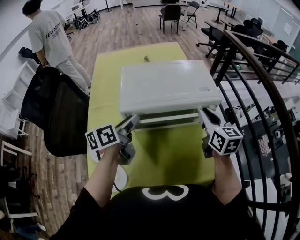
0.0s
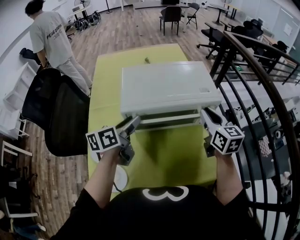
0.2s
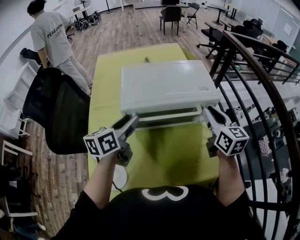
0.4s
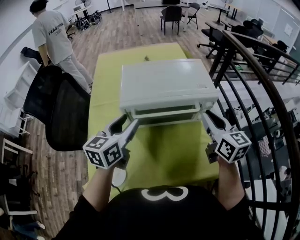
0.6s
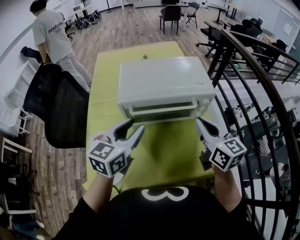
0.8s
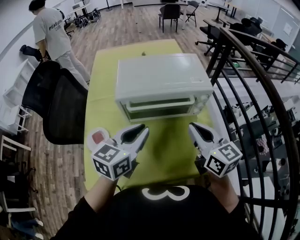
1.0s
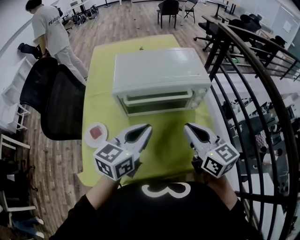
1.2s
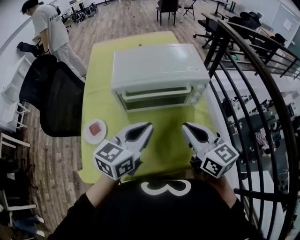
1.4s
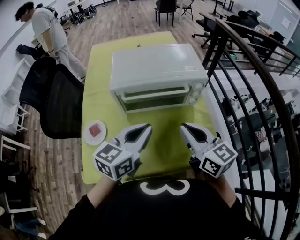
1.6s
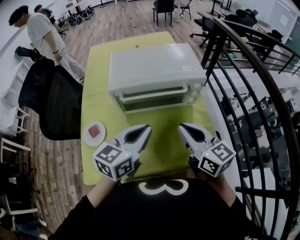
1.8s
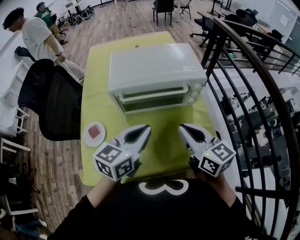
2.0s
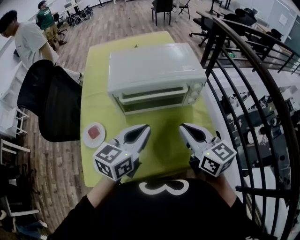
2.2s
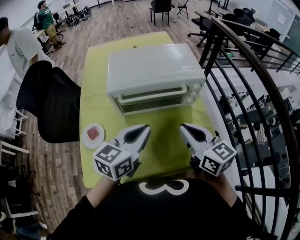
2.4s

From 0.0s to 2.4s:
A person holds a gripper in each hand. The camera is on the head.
From 0.0s to 1.2s: The left gripper shifts roughly 15 cm backward and to the right, rotates some 40 degrees, and closes. Meanwhile the right gripper goes about 15 cm backward.
From 1.2s to 2.4s: The grippers stay close to where they were, moving slightly.

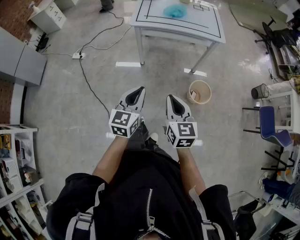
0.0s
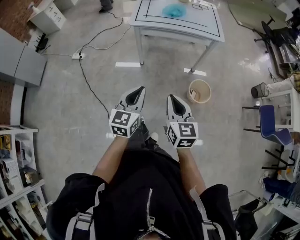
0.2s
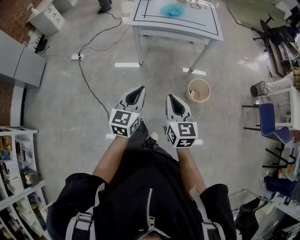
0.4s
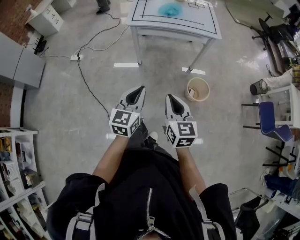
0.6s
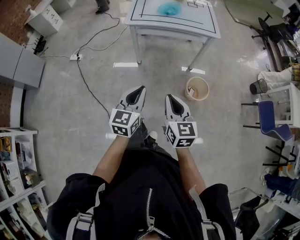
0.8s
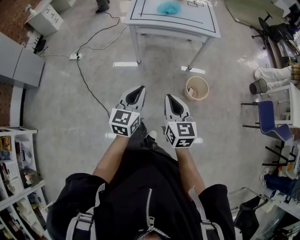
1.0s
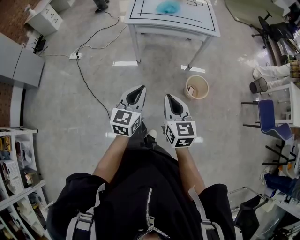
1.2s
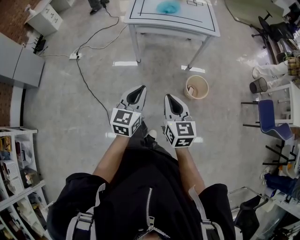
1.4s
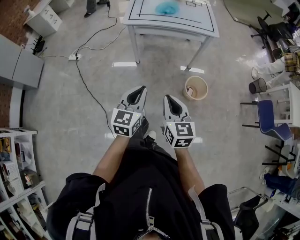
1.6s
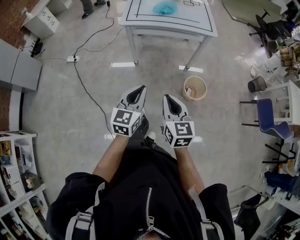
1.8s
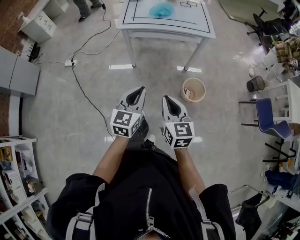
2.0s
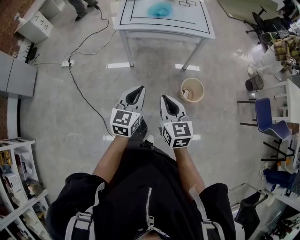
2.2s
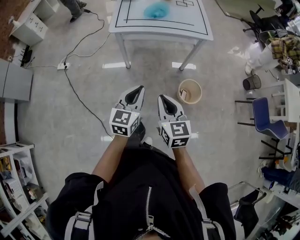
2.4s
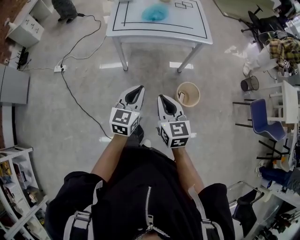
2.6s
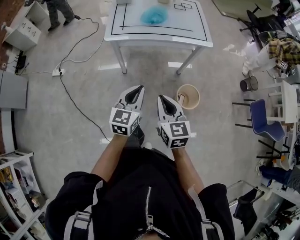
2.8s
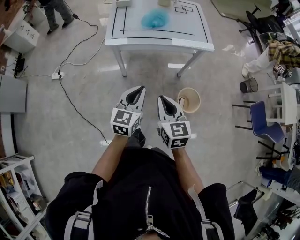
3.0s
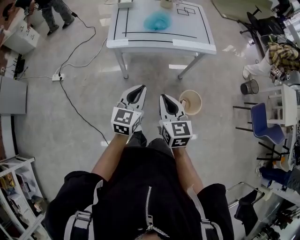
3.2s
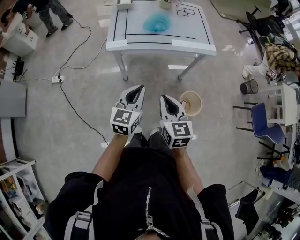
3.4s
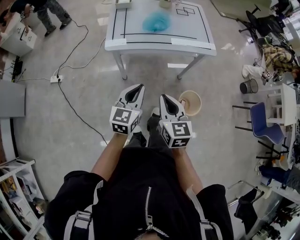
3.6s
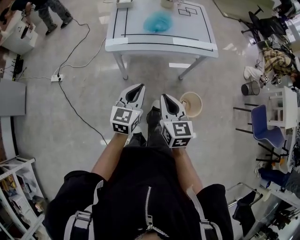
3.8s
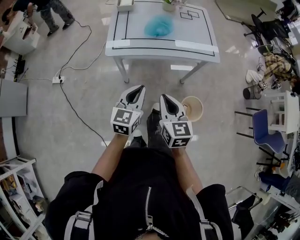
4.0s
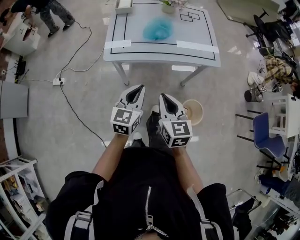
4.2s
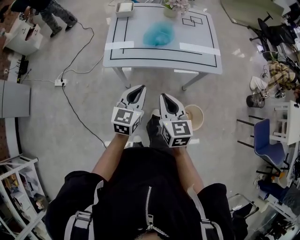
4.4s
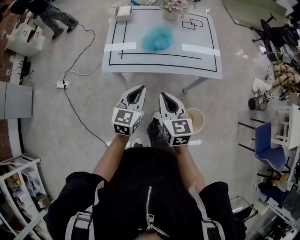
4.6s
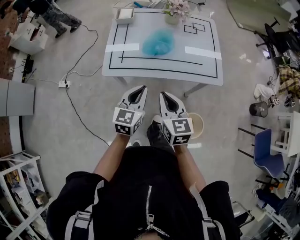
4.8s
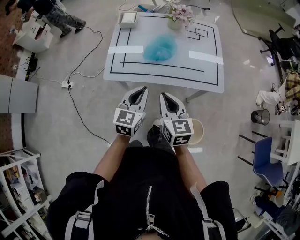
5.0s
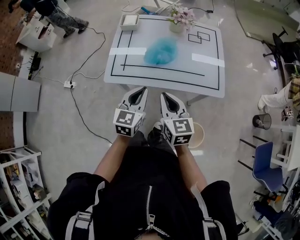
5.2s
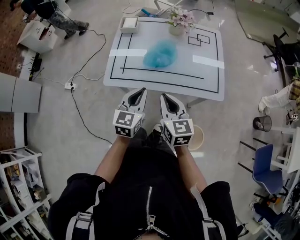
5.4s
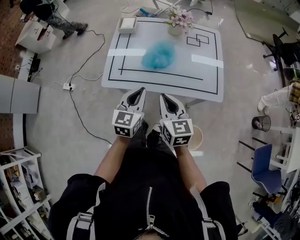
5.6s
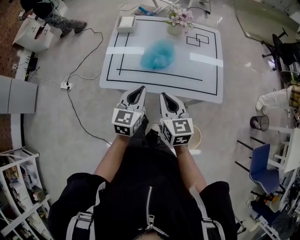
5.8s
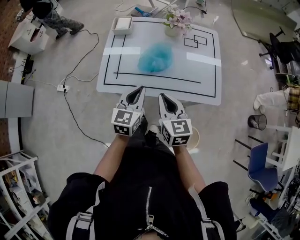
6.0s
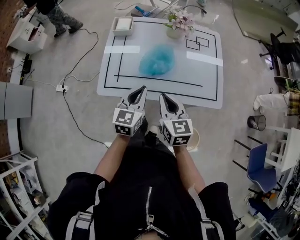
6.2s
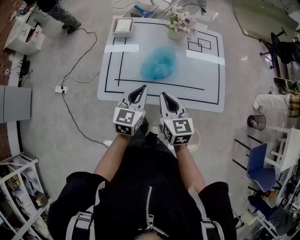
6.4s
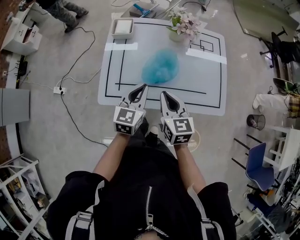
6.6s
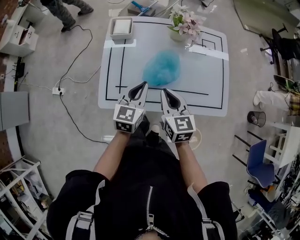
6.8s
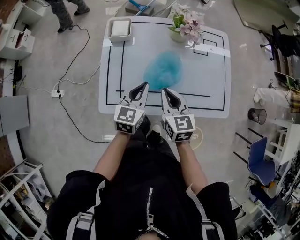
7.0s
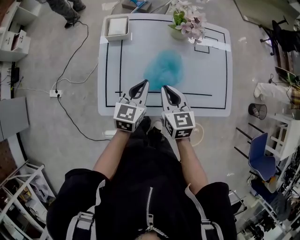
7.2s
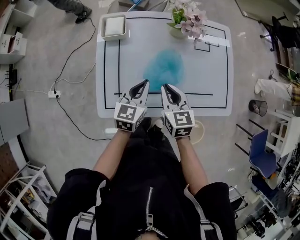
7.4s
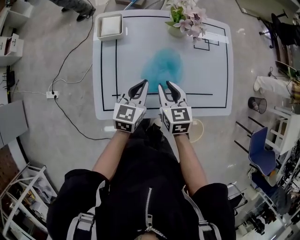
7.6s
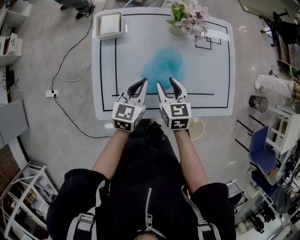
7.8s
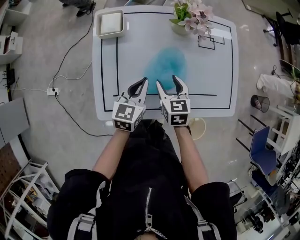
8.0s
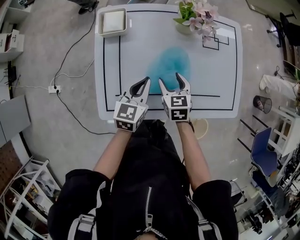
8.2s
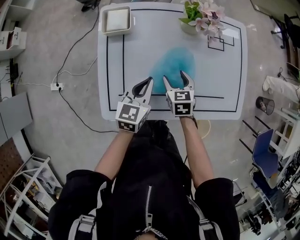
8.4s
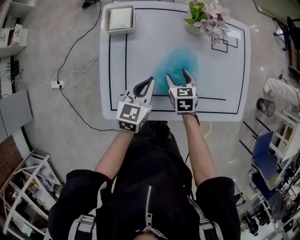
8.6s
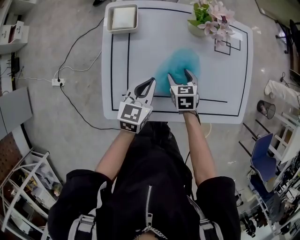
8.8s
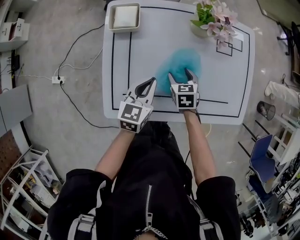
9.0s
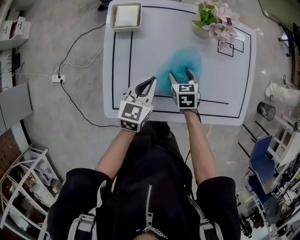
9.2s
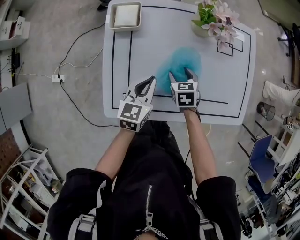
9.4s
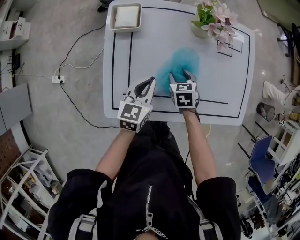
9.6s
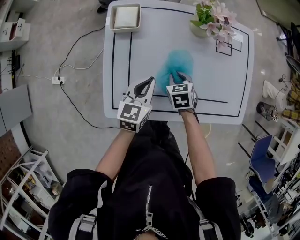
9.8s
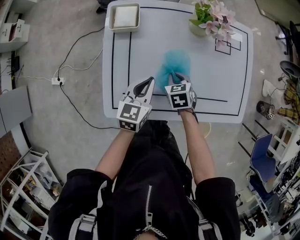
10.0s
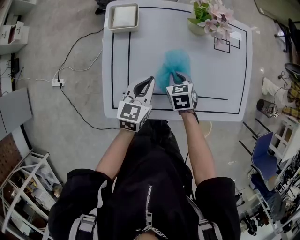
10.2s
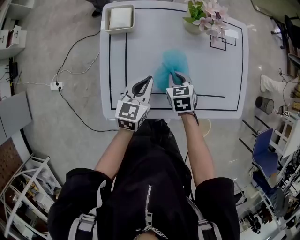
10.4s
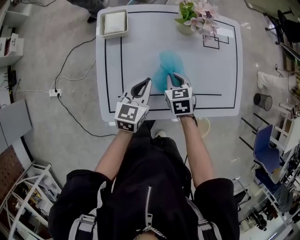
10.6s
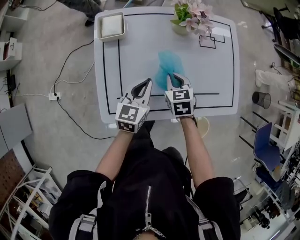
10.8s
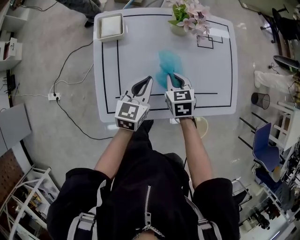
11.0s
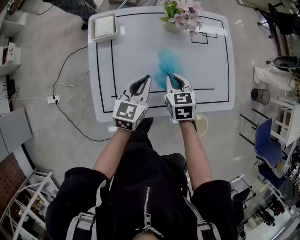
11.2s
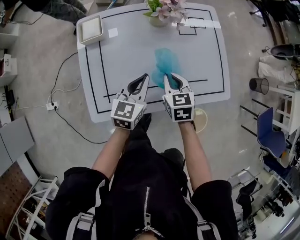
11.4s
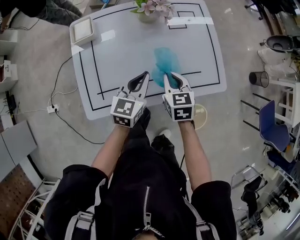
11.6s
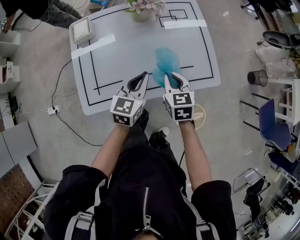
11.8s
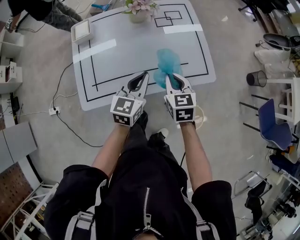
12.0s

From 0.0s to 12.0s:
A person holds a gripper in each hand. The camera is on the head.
From 0.0s to 1.6s: There are only small adjustments of the grippers.
From 1.6s to 3.0s: Both grippers travel together forward, about 25 cm.
From 3.0s to 4.4s: The grippers both shift forward by roughly 20 cm.
From 4.4s to 6.0s: Both grippers travel together forward, about 20 cm.
From 6.0s to 7.6s: Both grippers move forward and downward, about 20 cm.
From 7.6s to 9.0s: The right gripper travels downward and forward by about 15 cm, swivels approximately 20 degrees, and opens its fingers. Meanwhile the left gripper moves about 5 cm.
From 9.0s to 10.4s: The right gripper closes its fingers.
From 10.4s to 12.0s: The two grippers go about 25 cm to the right, upward and backward. The right gripper turns by approximately 20 degrees.

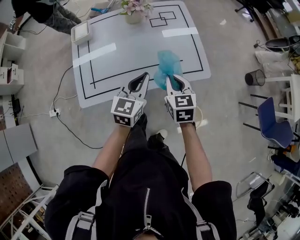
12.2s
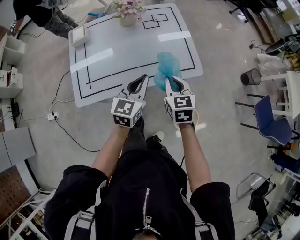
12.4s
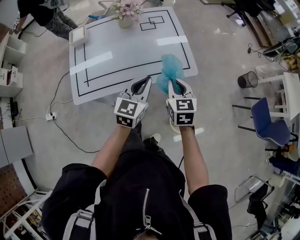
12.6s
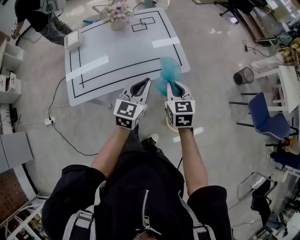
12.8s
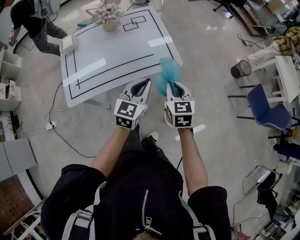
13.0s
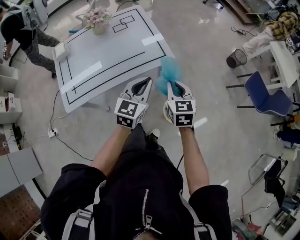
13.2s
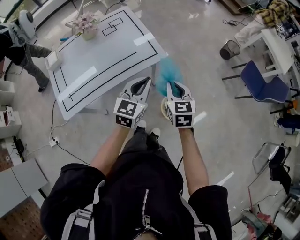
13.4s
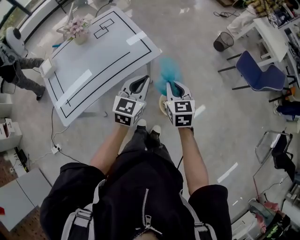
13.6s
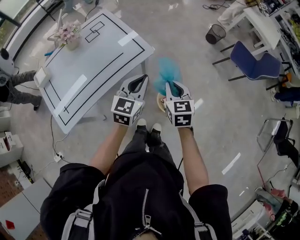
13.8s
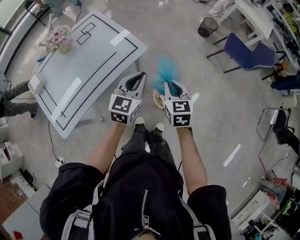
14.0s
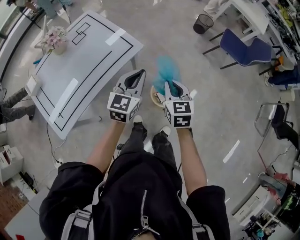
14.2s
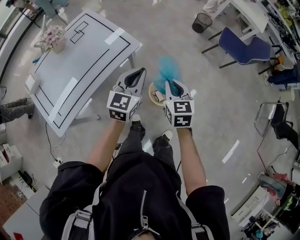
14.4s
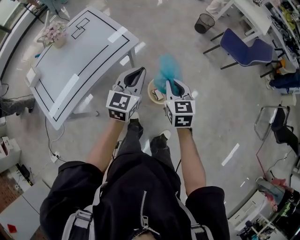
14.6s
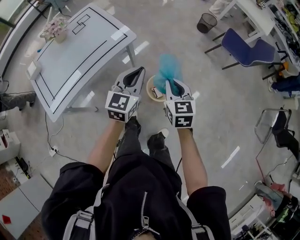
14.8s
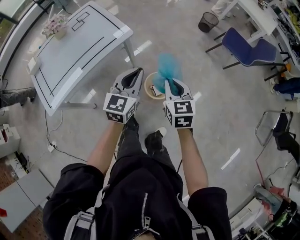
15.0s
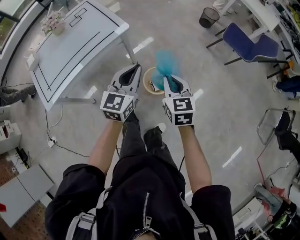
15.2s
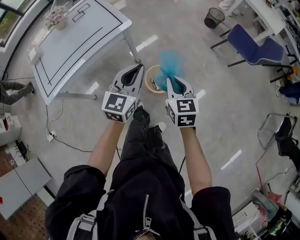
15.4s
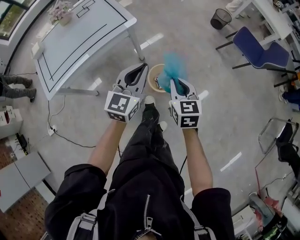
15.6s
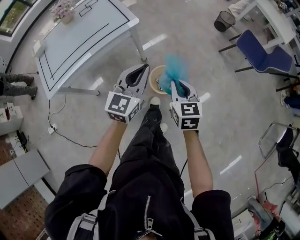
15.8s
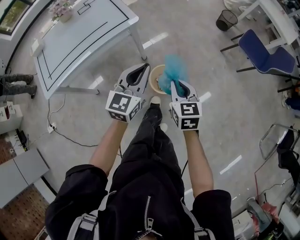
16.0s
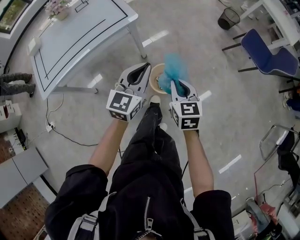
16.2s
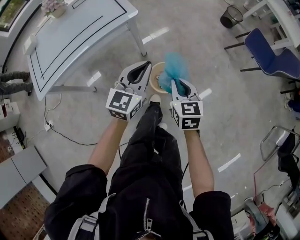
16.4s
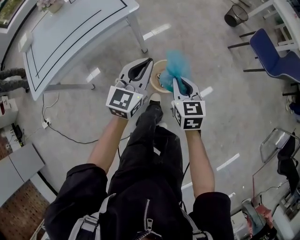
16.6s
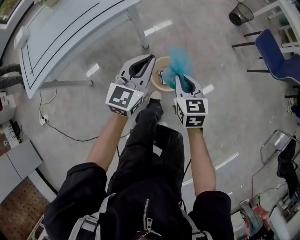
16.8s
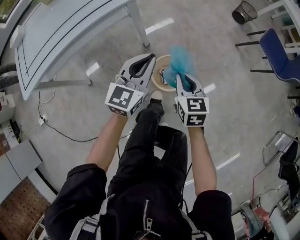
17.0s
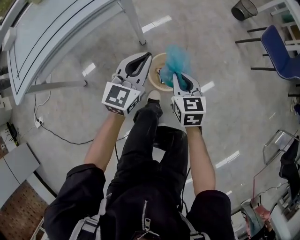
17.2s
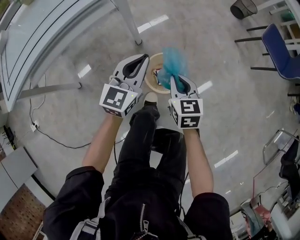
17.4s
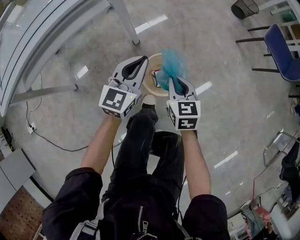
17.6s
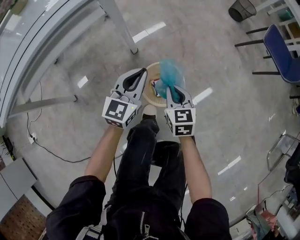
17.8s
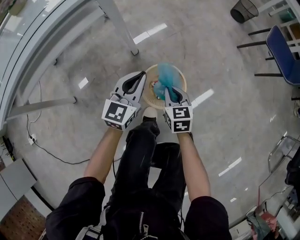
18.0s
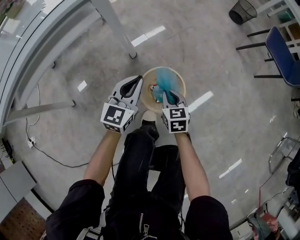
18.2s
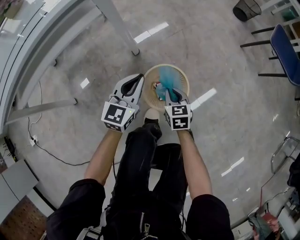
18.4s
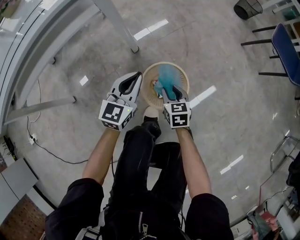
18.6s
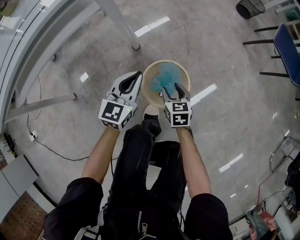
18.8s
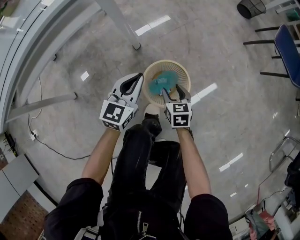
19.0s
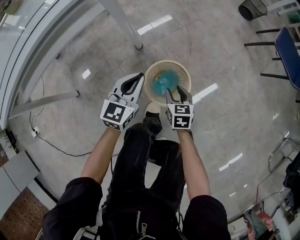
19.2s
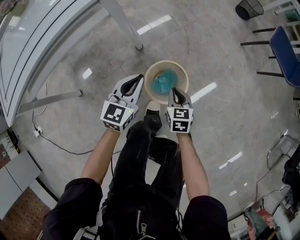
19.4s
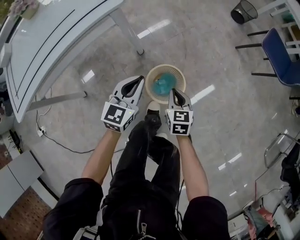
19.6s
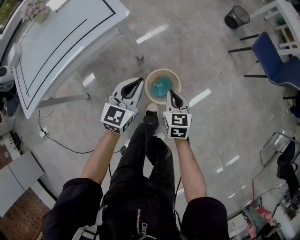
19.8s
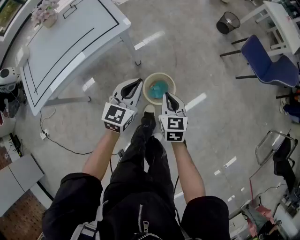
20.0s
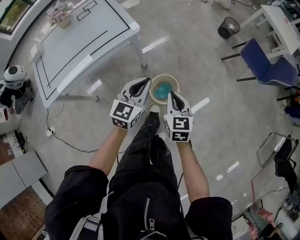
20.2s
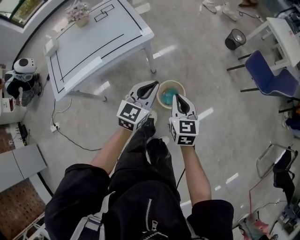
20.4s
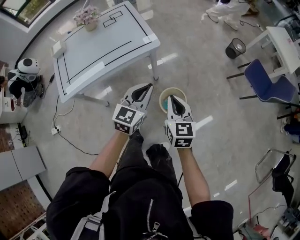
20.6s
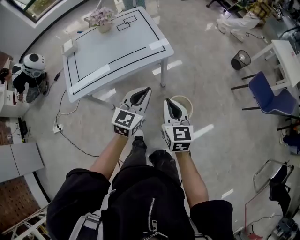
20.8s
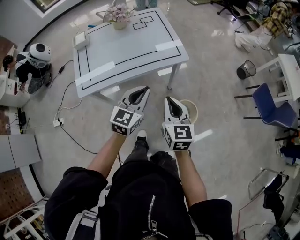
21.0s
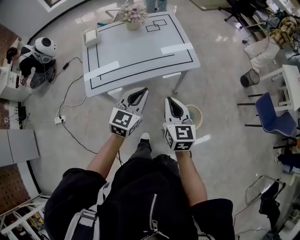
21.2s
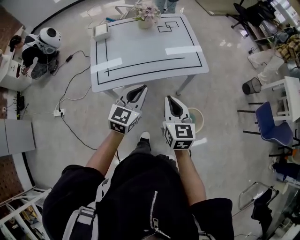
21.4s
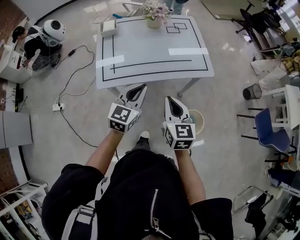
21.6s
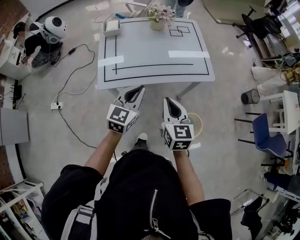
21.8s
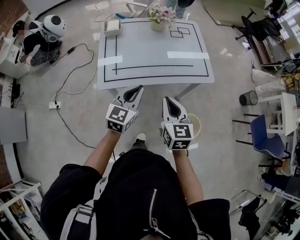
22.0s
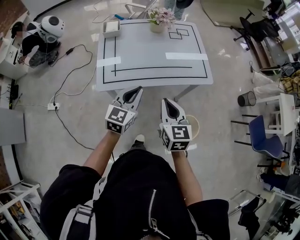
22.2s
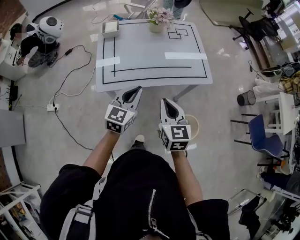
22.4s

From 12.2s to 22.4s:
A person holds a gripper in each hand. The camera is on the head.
From 12.2s to 13.6s: The left gripper shifts some 25 cm to the right, and changes its angle by approximately 30 degrees. The right gripper goes roughly 25 cm to the right and backward, and rotates approximately 20 degrees.
From 13.6s to 15.2s: Both grippers move to the right and backward, roughly 20 cm.
From 15.2s to 16.6s: The right gripper moves downward, some 15 cm. Meanwhile the left gripper shifts roughly 15 cm downward and forward.
From 16.6s to 18.0s: Both grippers travel together downward, roughly 30 cm.
From 18.0s to 19.4s: The right gripper reaches about 10 cm downward, then returns, and opens, then closes once more.
From 19.4s to 21.0s: The two grippers go about 50 cm upward and to the left. The right gripper rotates some 30 degrees.
From 21.0s to 22.4s: Both grippers travel together to the left, roughly 20 cm.
